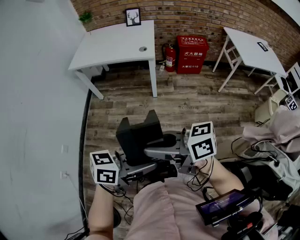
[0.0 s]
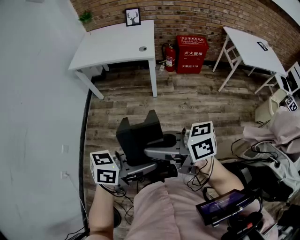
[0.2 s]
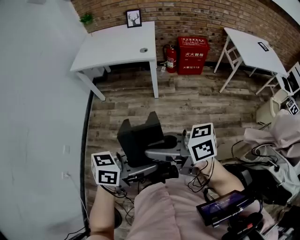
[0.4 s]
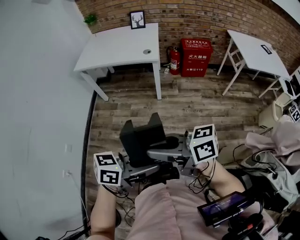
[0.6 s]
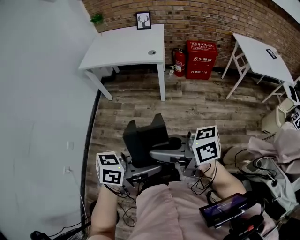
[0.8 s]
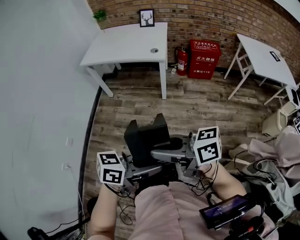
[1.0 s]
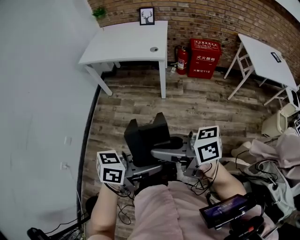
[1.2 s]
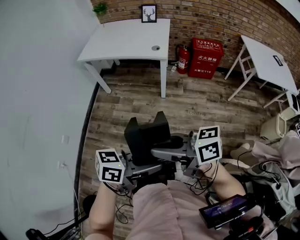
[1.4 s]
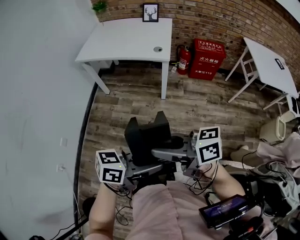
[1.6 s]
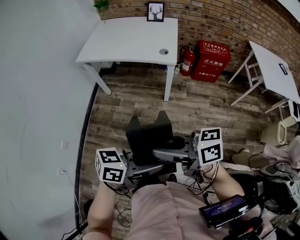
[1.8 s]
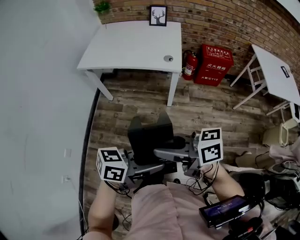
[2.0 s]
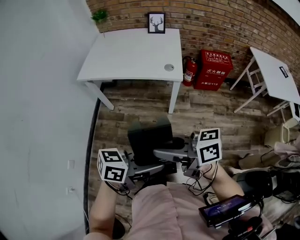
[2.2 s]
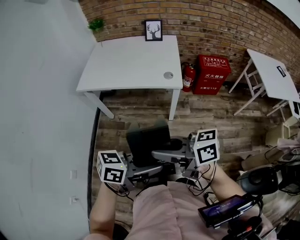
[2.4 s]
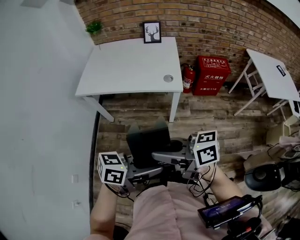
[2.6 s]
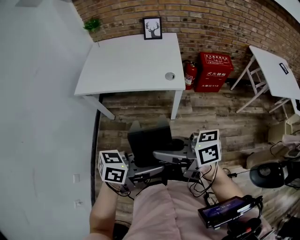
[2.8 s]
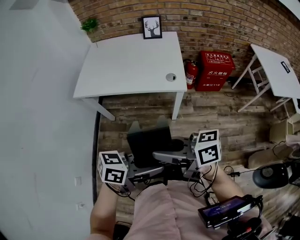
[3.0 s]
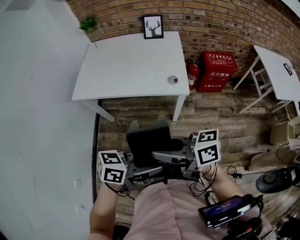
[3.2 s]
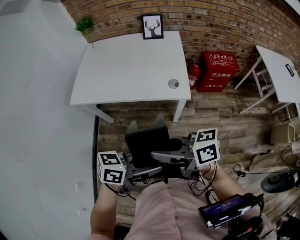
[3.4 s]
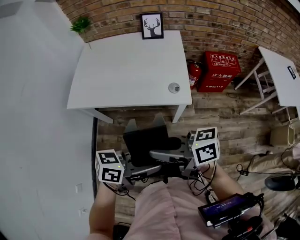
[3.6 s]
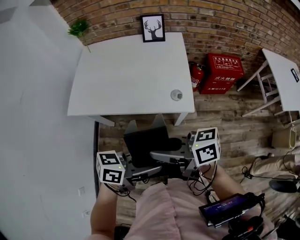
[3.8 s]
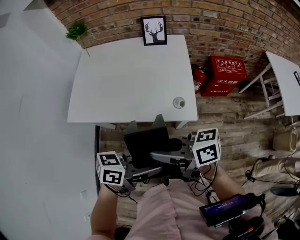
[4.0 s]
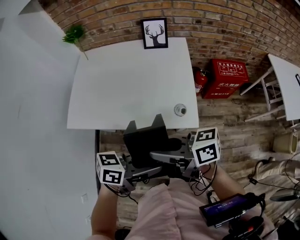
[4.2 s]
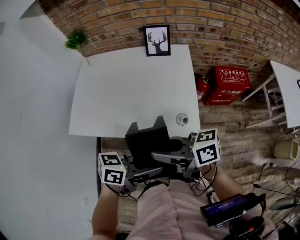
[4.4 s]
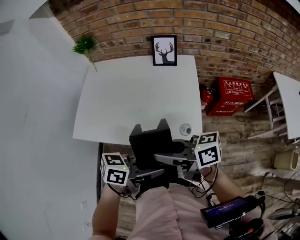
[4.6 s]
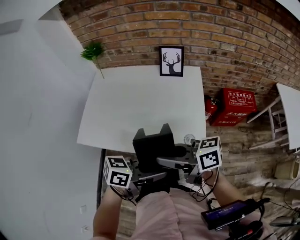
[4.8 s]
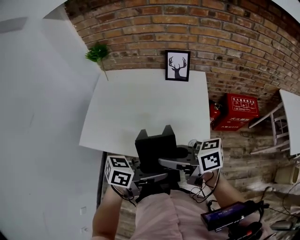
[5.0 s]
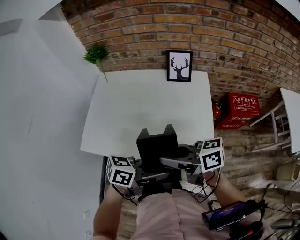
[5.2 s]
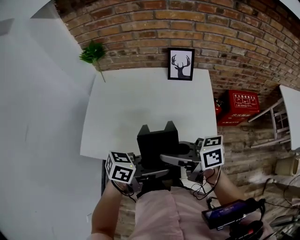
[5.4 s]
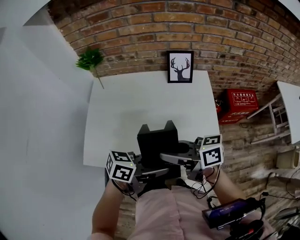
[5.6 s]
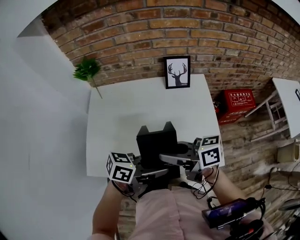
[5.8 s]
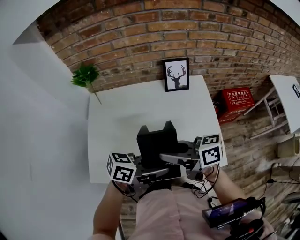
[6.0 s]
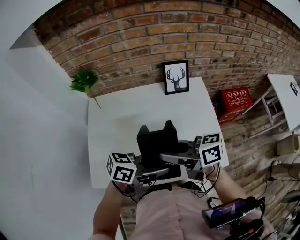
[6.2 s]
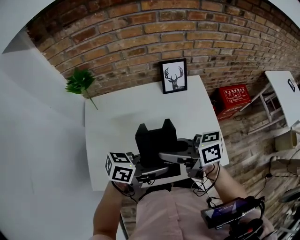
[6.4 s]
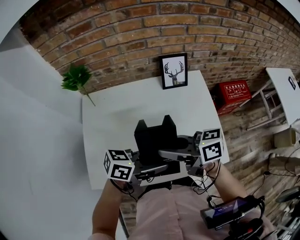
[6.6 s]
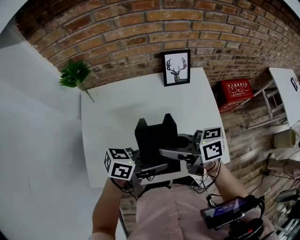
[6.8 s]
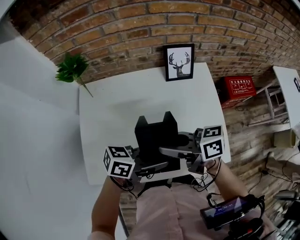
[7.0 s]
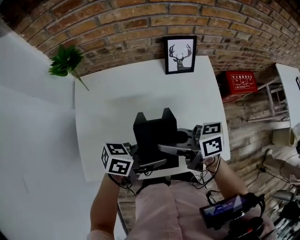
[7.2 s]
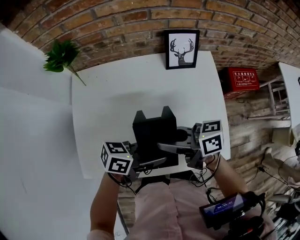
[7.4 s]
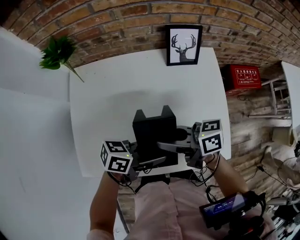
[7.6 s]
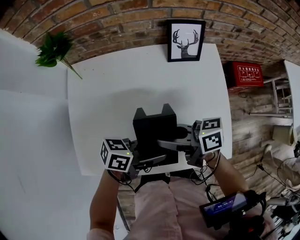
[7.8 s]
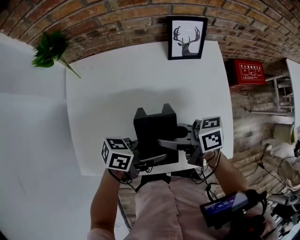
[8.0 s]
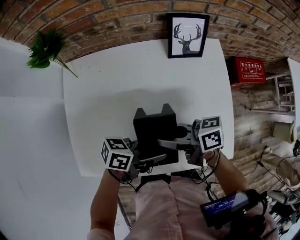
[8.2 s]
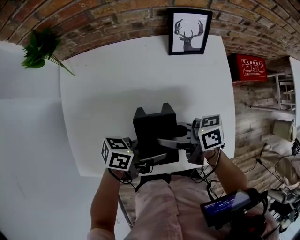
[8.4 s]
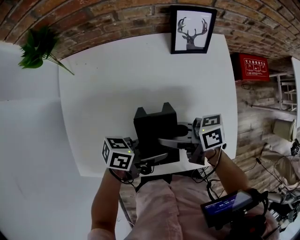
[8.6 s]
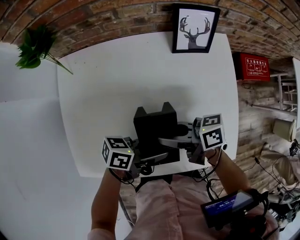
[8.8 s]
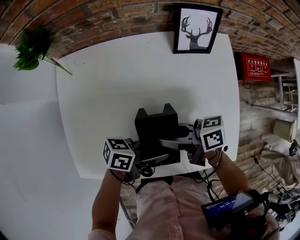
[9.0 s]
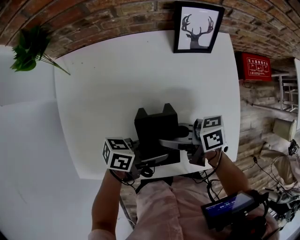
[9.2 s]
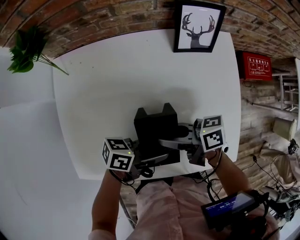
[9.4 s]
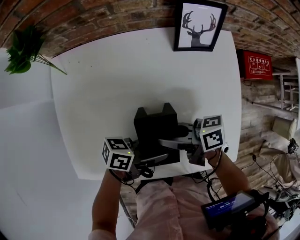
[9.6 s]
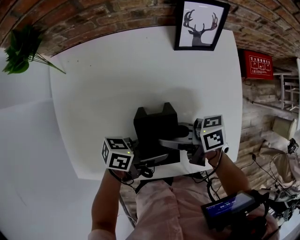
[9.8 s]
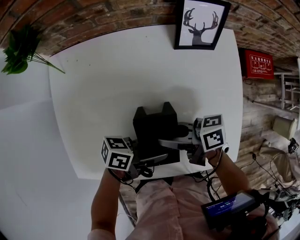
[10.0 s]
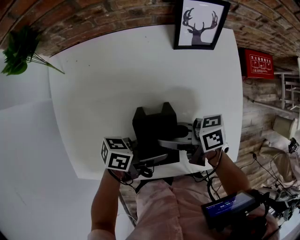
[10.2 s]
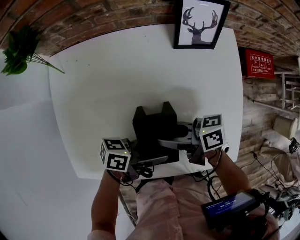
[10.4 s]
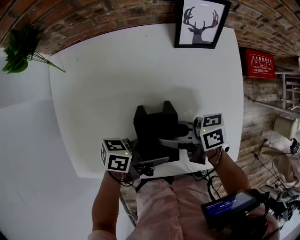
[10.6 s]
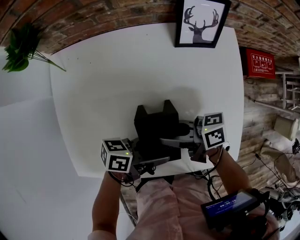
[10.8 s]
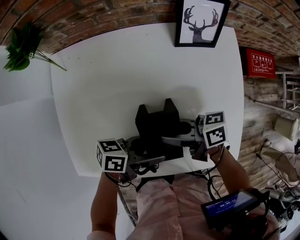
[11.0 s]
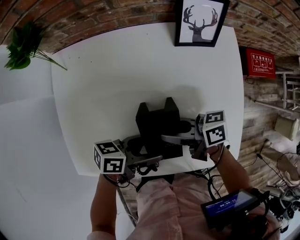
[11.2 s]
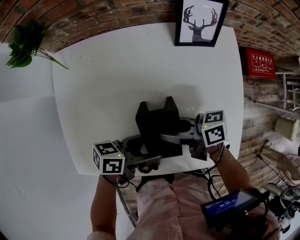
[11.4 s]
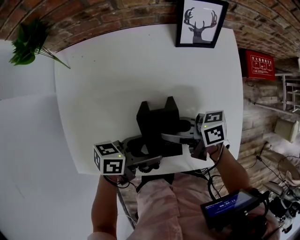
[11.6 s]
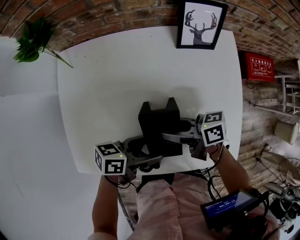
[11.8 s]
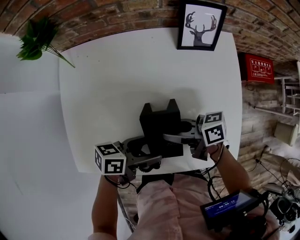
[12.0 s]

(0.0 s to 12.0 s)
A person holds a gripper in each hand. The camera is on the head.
0.0 s - 1.6 s: The right gripper moves about 10 cm. The left gripper changes place by some 10 cm.
1.6 s - 3.0 s: The left gripper ends up some 30 cm from where it was. Meanwhile the right gripper shifts by about 30 cm.
3.0 s - 4.4 s: The left gripper ends up approximately 30 cm from where it was, while the right gripper moves about 30 cm.
4.4 s - 6.0 s: The left gripper changes place by approximately 25 cm; the right gripper shifts by approximately 25 cm.
6.0 s - 7.6 s: The grippers both shift downward by approximately 10 cm.
7.6 s - 9.0 s: Both grippers move downward, roughly 10 cm.
9.0 s - 12.0 s: The grippers make only small movements.

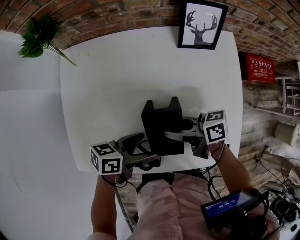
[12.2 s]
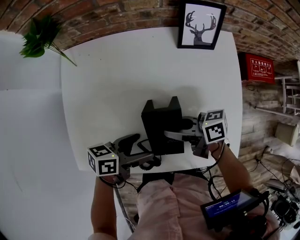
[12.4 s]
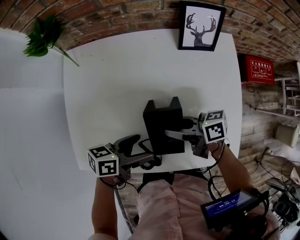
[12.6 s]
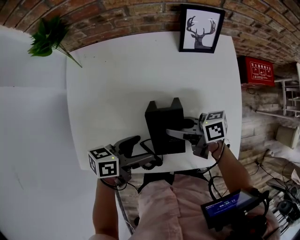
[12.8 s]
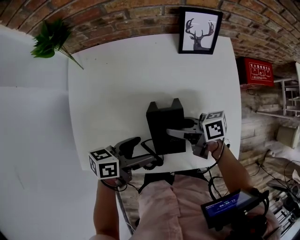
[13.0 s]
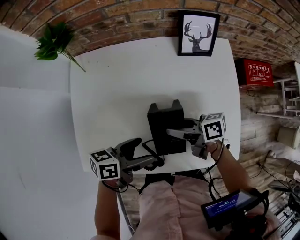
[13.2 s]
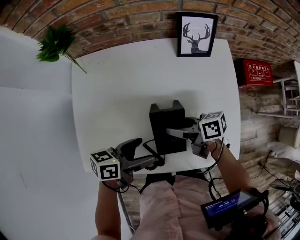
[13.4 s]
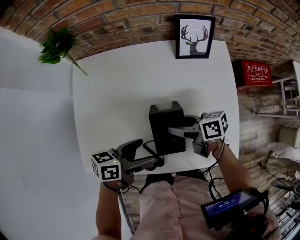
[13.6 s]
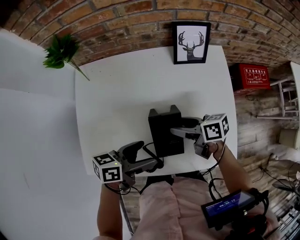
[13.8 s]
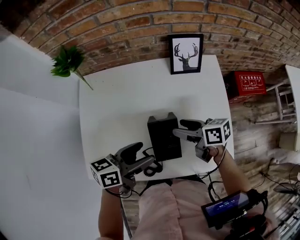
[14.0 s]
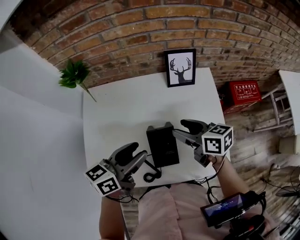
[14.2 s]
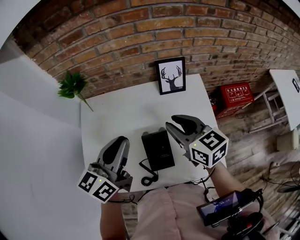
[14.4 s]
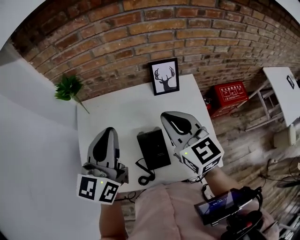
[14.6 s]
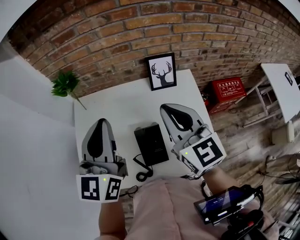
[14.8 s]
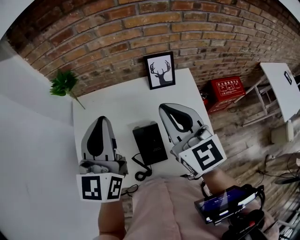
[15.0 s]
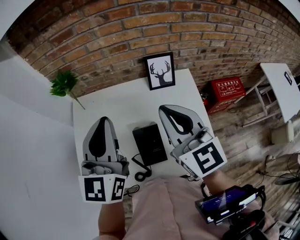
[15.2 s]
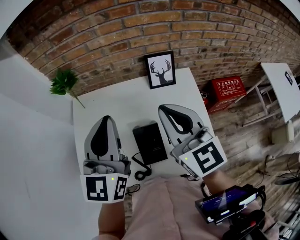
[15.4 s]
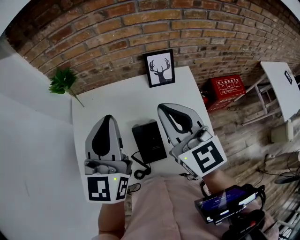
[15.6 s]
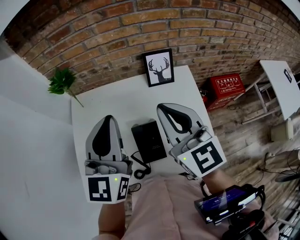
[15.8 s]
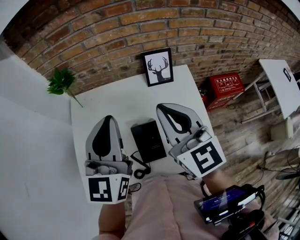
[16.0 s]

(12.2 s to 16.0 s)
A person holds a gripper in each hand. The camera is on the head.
12.2 s - 13.4 s: The right gripper opens.
13.4 s - 14.8 s: Both grippers move upward, roughly 30 cm. The right gripper changes its angle by about 80 degrees, and closes its fingers, while the left gripper rotates some 80 degrees, and closes its fingers.
14.8 s - 16.0 s: The grippers make only small movements.

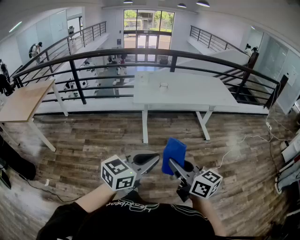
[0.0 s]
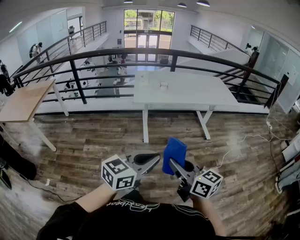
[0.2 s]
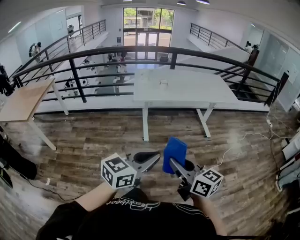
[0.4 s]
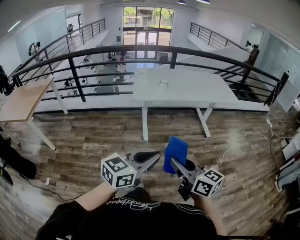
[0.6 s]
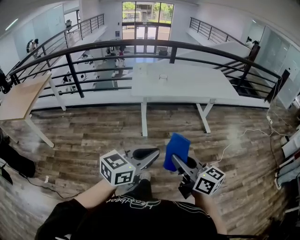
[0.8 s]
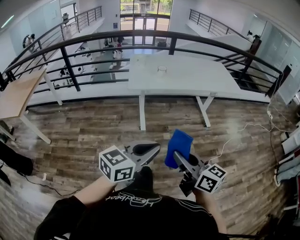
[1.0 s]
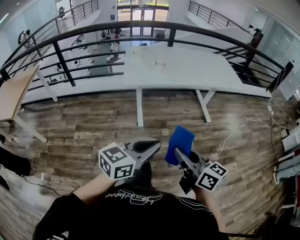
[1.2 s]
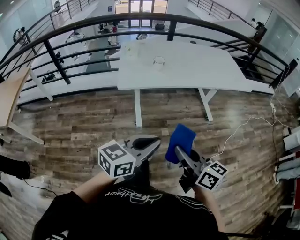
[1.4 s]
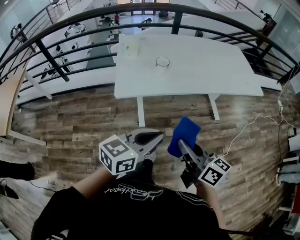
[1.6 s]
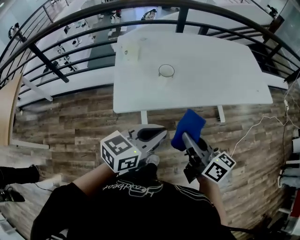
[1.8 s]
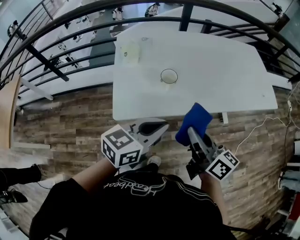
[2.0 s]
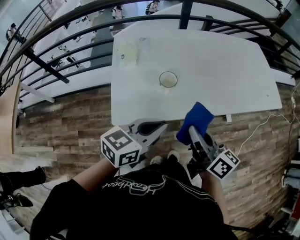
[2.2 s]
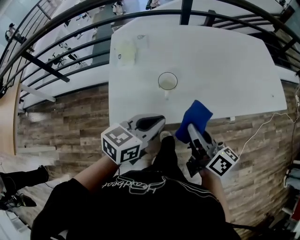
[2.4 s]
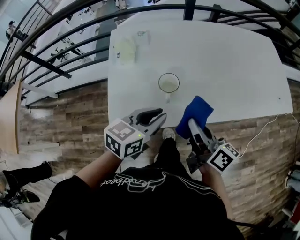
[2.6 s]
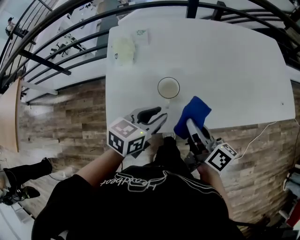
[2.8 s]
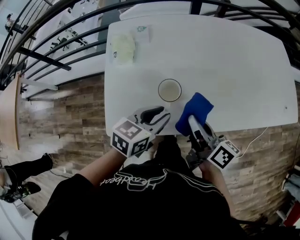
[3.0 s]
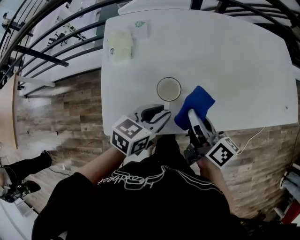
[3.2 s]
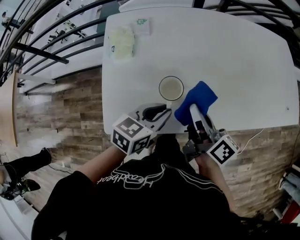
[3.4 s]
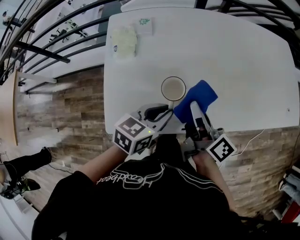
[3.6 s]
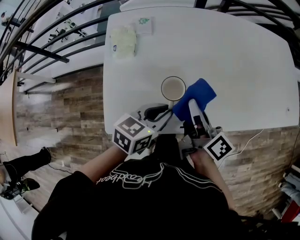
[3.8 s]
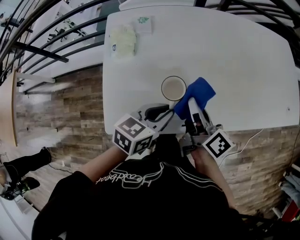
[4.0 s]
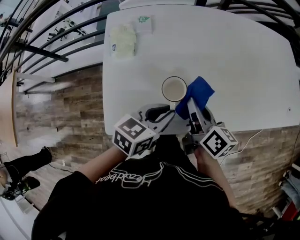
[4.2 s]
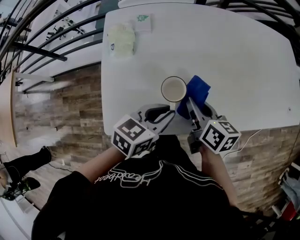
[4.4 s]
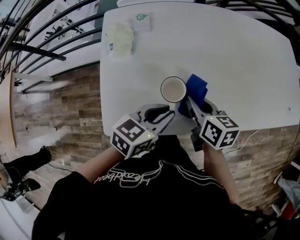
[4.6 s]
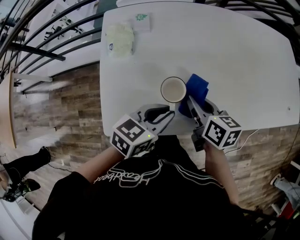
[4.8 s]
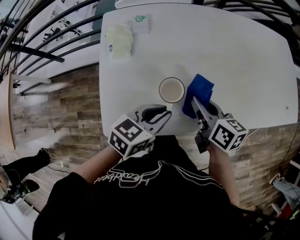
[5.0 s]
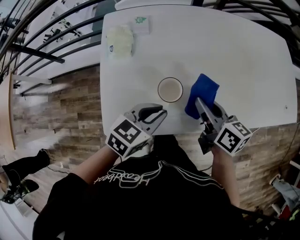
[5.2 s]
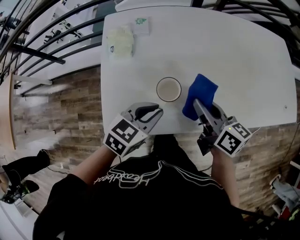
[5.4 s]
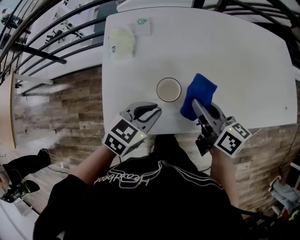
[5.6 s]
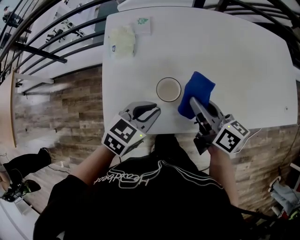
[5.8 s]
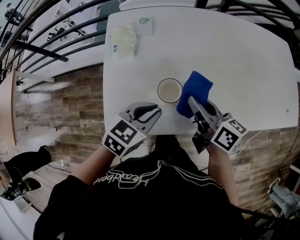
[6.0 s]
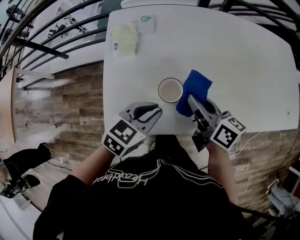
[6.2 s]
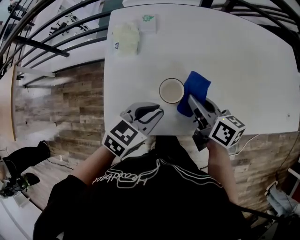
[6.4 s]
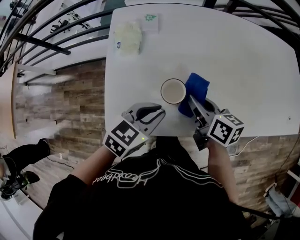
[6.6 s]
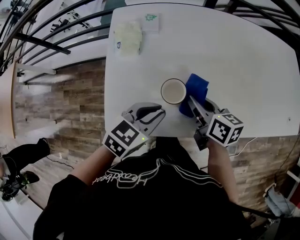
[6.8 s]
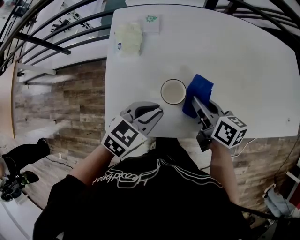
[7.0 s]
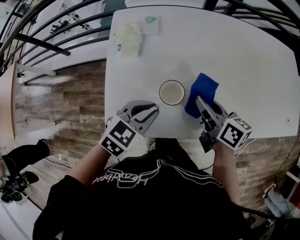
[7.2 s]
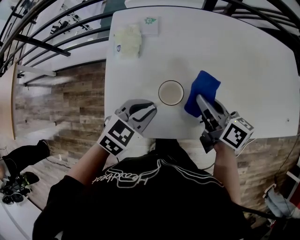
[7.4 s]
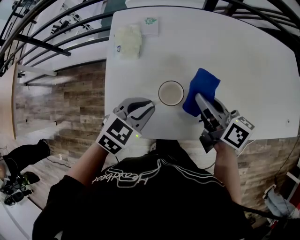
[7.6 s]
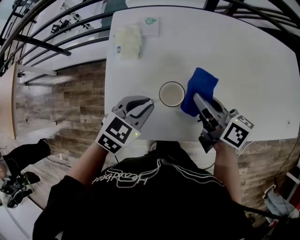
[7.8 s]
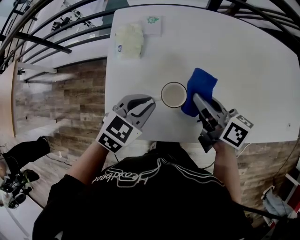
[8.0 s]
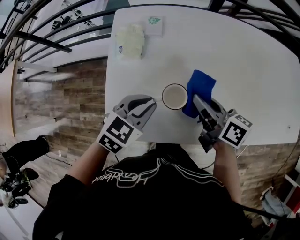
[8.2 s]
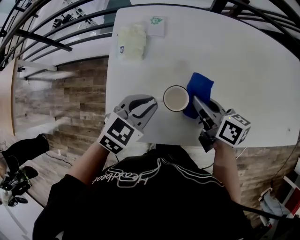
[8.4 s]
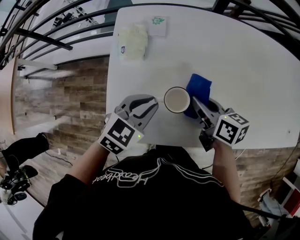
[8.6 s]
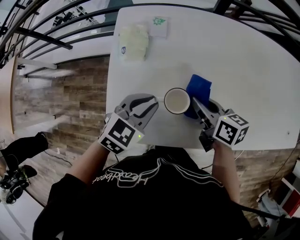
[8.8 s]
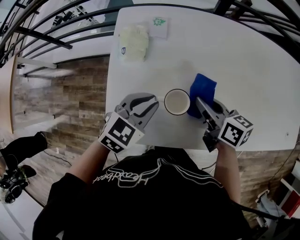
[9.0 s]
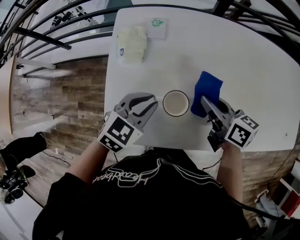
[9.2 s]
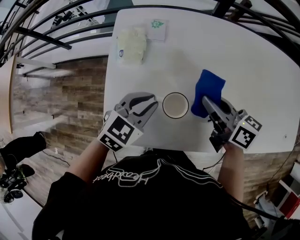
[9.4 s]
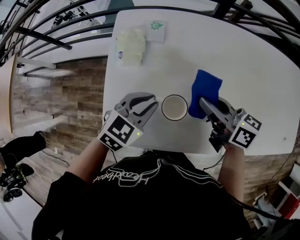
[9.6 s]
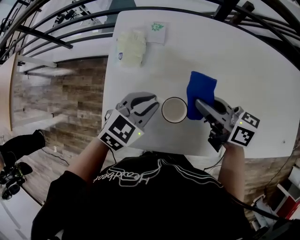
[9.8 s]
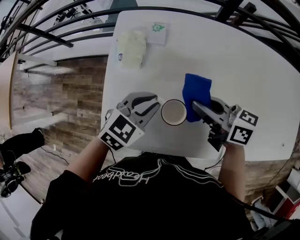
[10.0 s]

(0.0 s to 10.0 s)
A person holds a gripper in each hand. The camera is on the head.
0.0 s - 1.4 s: Both grippers move forward and downward, some 30 cm.
1.4 s - 2.8 s: The pair of grippers is taken forward, some 50 cm. The right gripper changes its angle by about 20 degrees. The left gripper changes its angle by approximately 20 degrees, and opens its fingers.
2.8 s - 4.2 s: The right gripper heads forward, covering approximately 10 cm.
7.2 s - 8.6 s: The right gripper ends up some 5 cm from where it was.
8.6 s - 10.0 s: The right gripper heads upward, covering about 5 cm, and swivels roughly 20 degrees.
